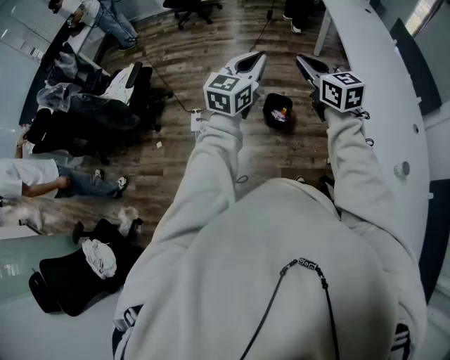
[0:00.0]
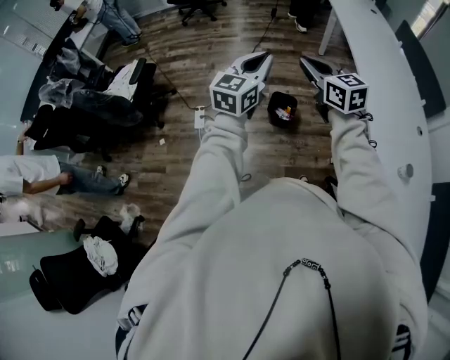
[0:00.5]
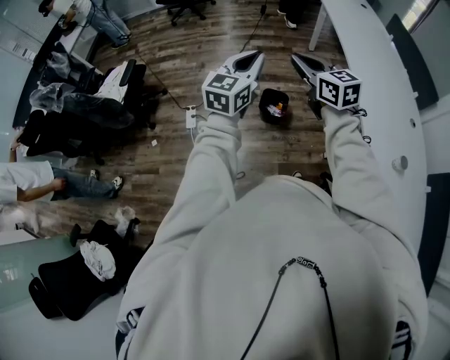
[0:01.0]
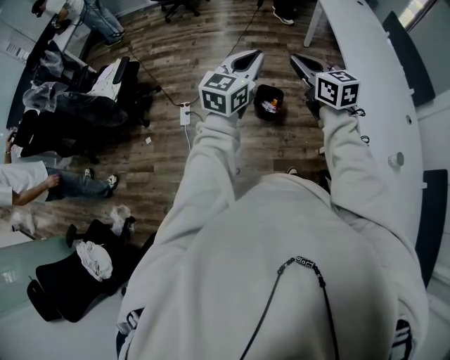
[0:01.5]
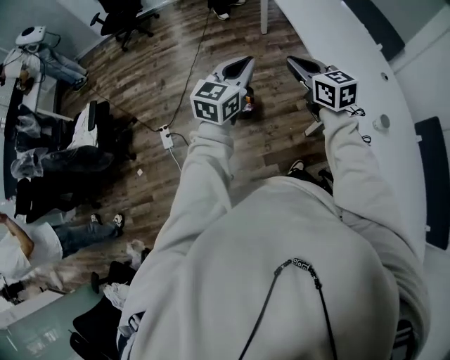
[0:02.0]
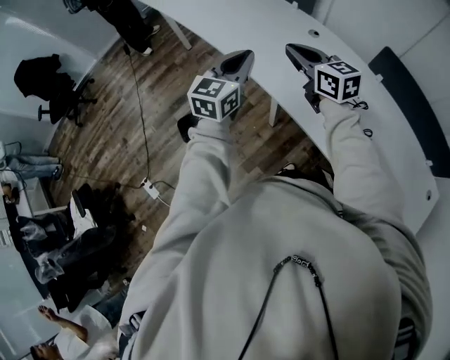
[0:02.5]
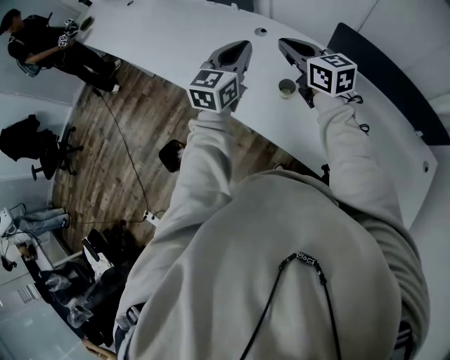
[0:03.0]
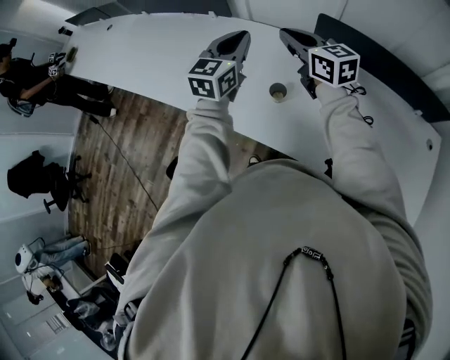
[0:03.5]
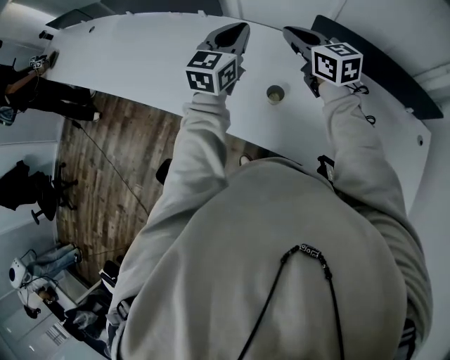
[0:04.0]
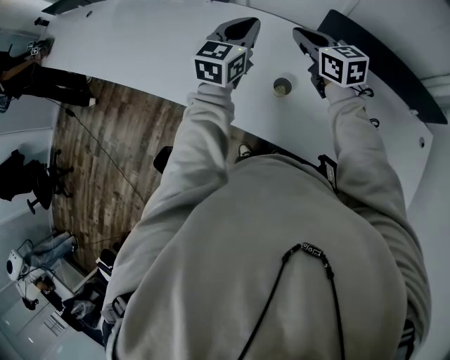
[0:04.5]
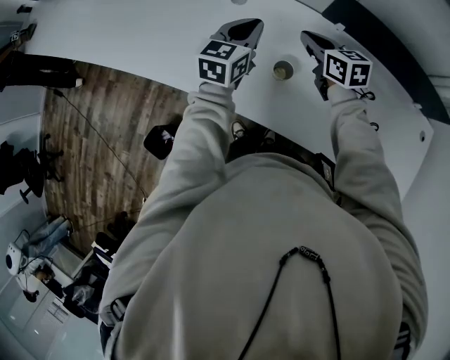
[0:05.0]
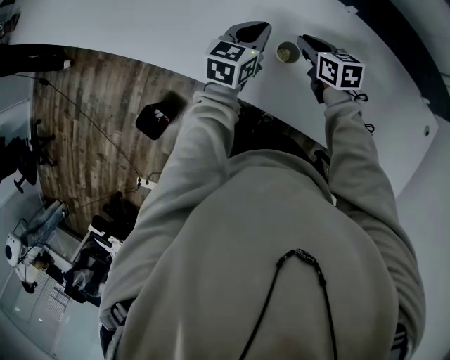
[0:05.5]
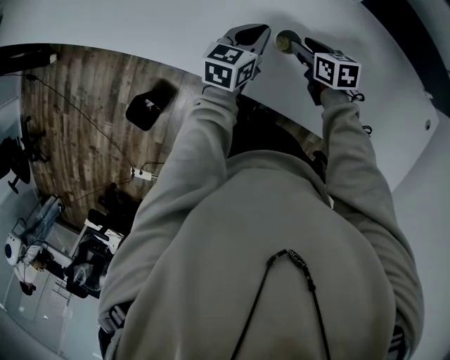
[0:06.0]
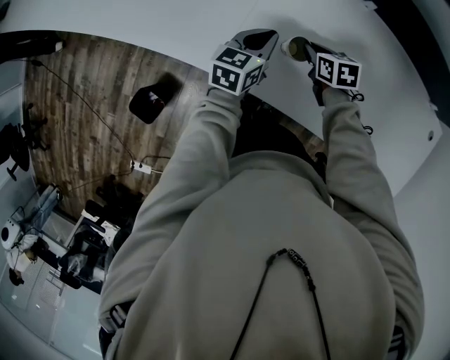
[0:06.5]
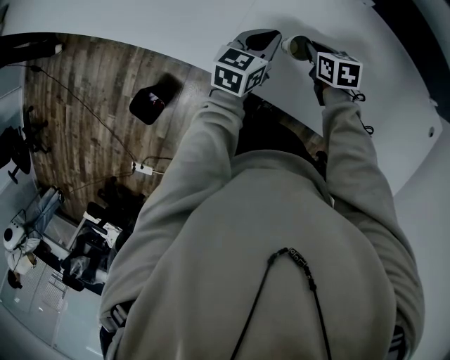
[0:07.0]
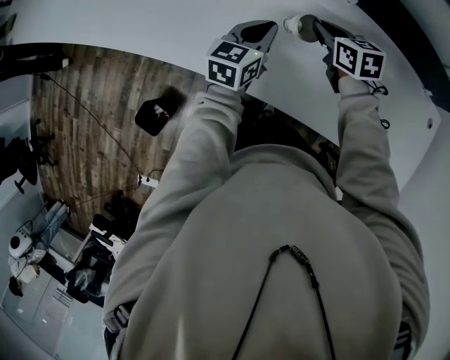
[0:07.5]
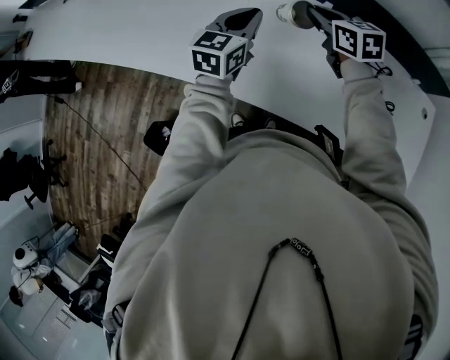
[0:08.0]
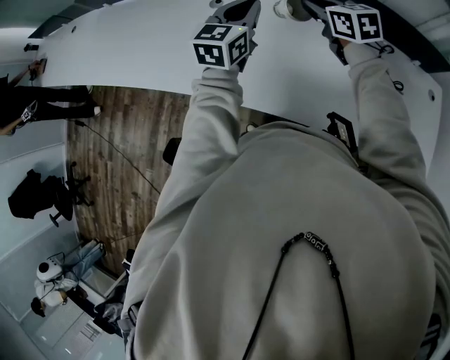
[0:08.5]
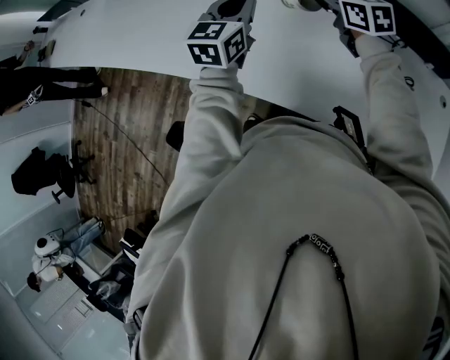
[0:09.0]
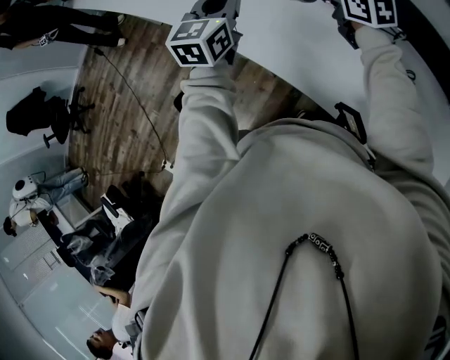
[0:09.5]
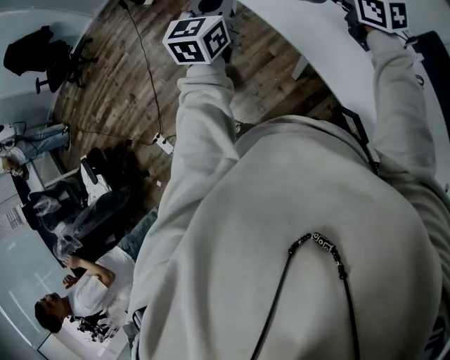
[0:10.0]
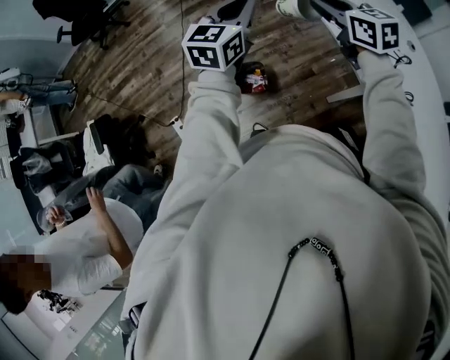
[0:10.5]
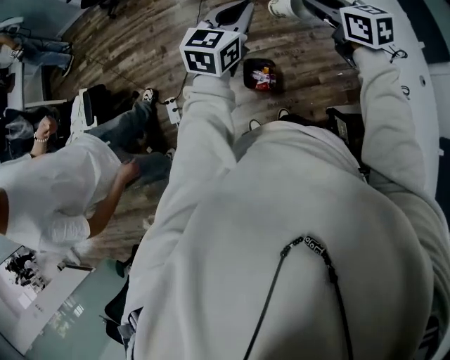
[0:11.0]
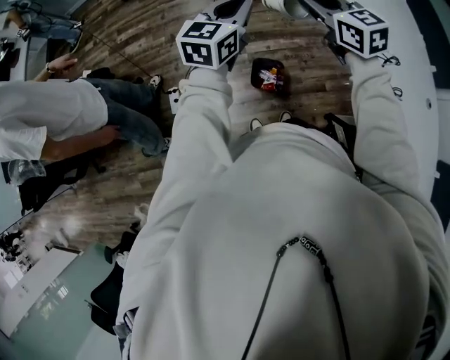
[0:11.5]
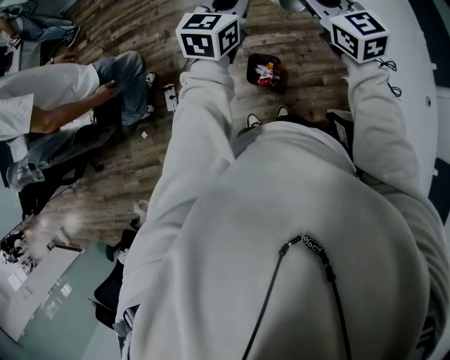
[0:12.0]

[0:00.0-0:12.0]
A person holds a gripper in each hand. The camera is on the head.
0:00.0 to 0:02.0: Both grippers travel together to the right, roughly 15 cm.
0:02.0 to 0:04.0: Both grippers are carried some 60 cm. The right gripper changes its angle by approximately 50 degrees, while the left gripper changes its angle by some 50 degrees.
0:04.0 to 0:06.0: Both grippers move downward, some 30 cm. The left gripper turns by about 30 degrees, while the right gripper tips its fingers downward by some 30 degrees, and opens.
0:06.0 to 0:08.0: Both grippers move upward, approximately 20 cm. The left gripper turns by approximately 20 degrees; the right gripper changes its angle by about 20 degrees, and closes its fingers.
0:08.0 to 0:10.0: The left gripper ends up roughly 40 cm from where it was, and swivels about 40 degrees, while the right gripper changes place by about 40 cm, and turns by approximately 40 degrees.
0:10.0 to 0:12.0: Both grippers are carried some 50 cm. The right gripper turns by some 30 degrees, while the left gripper swivels some 30 degrees.

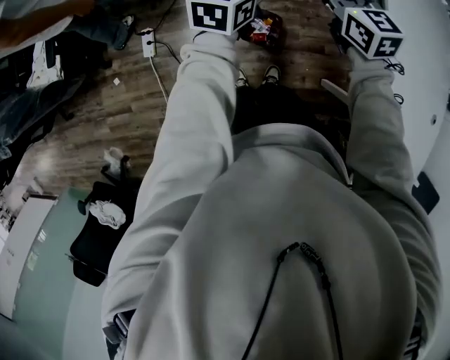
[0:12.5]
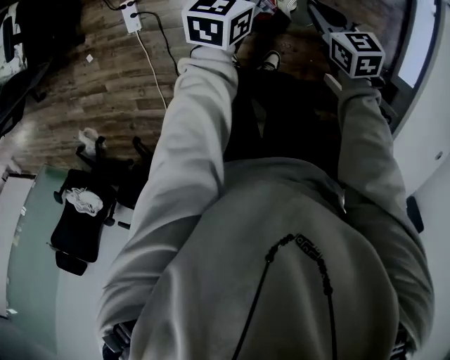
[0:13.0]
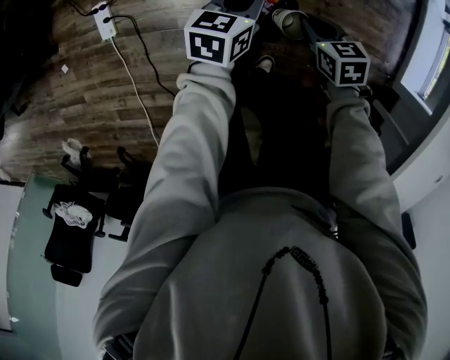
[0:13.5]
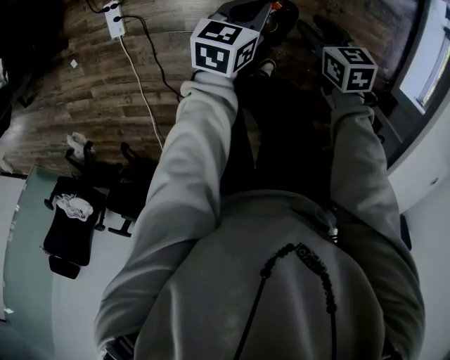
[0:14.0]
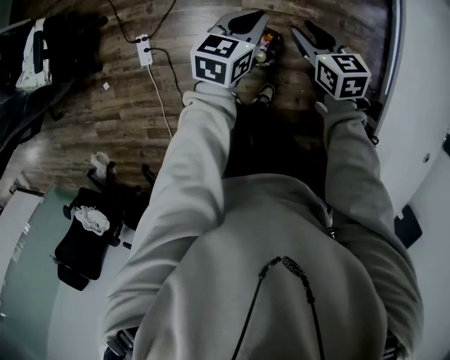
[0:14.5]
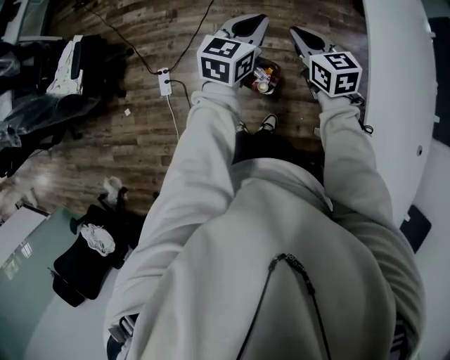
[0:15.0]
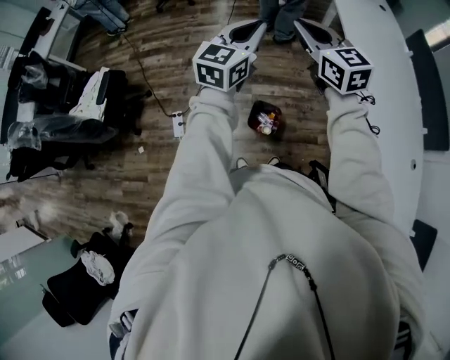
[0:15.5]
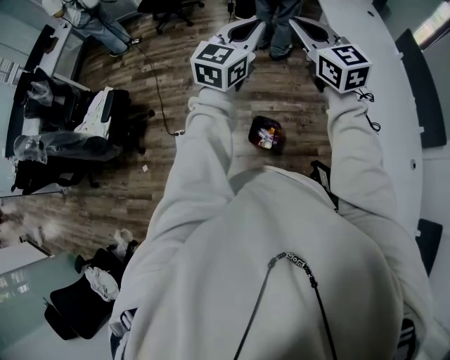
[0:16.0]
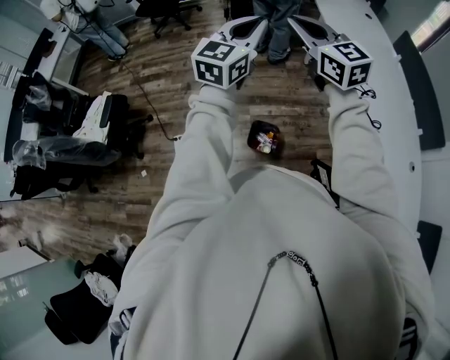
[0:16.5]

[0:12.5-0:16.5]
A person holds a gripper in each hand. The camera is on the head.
0:12.5 to 0:14.5: The left gripper travels downward and back again, approximately 40 cm each way, while the right gripper moves downward, about 15 cm, and opens.
0:14.5 to 0:16.5: Both grippers move upward, roughly 50 cm. The right gripper tilts its fingers about 40 degrees upward, and closes its fingers, while the left gripper rotates some 40 degrees.

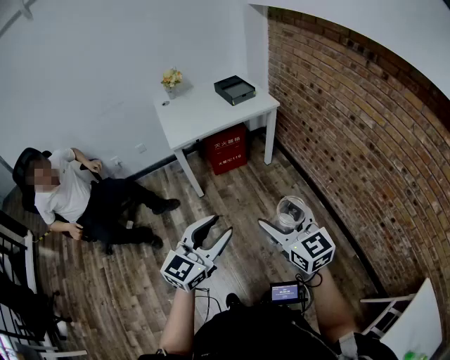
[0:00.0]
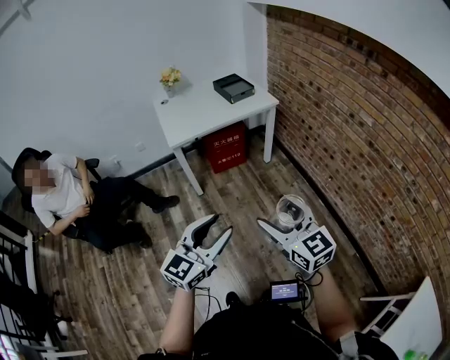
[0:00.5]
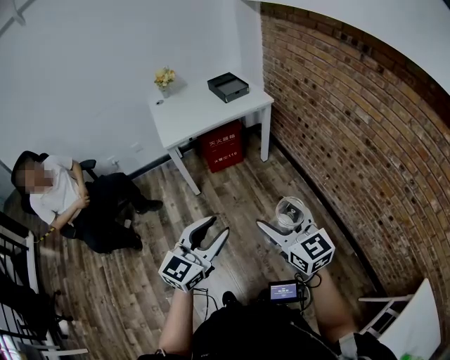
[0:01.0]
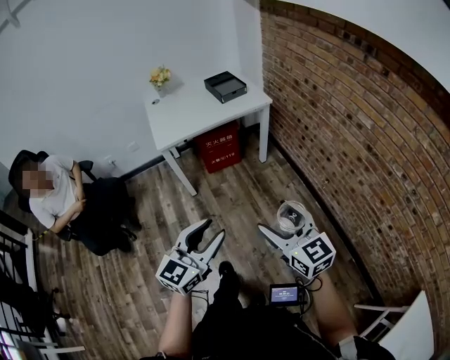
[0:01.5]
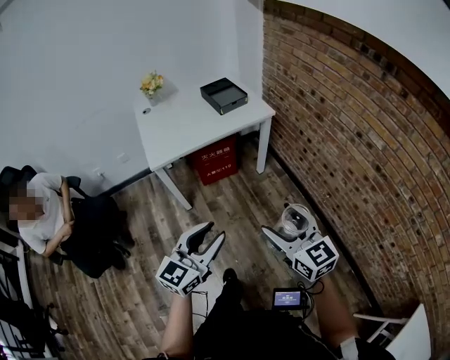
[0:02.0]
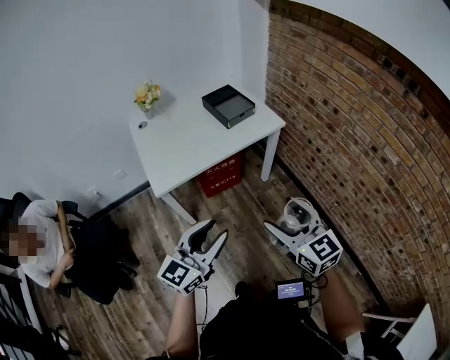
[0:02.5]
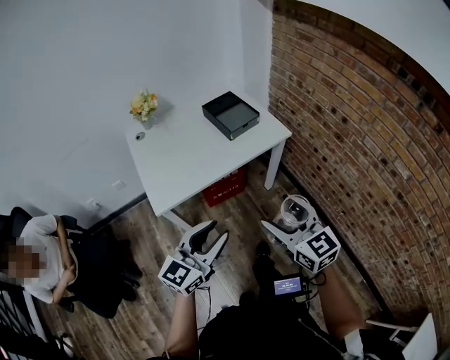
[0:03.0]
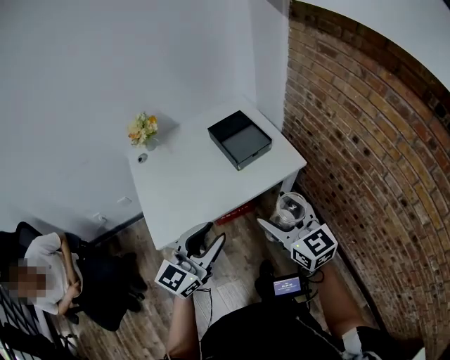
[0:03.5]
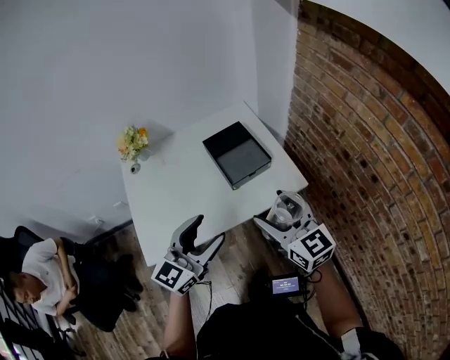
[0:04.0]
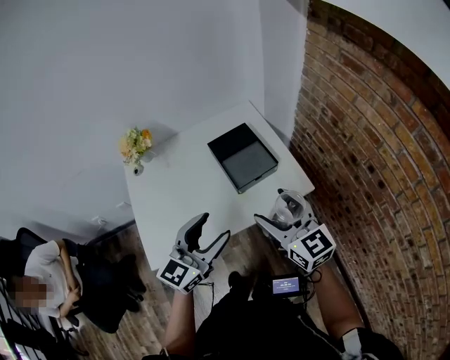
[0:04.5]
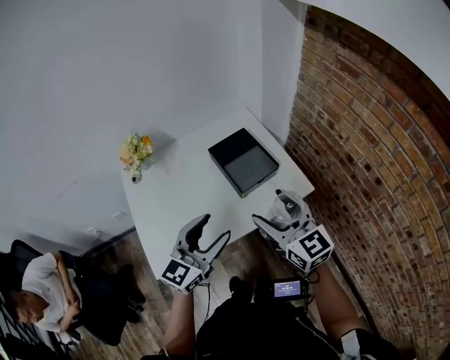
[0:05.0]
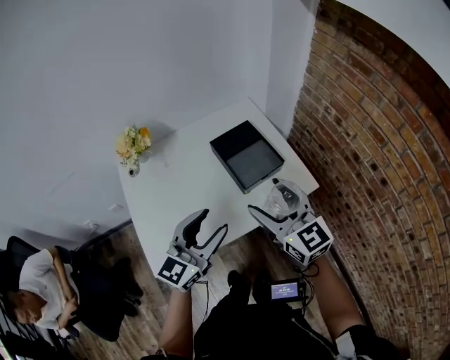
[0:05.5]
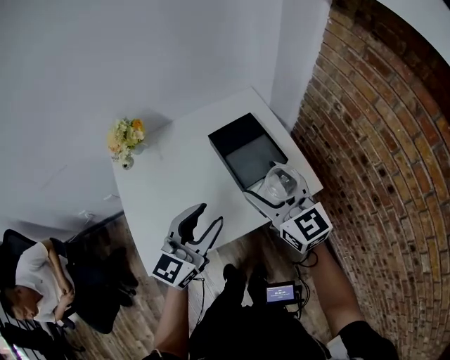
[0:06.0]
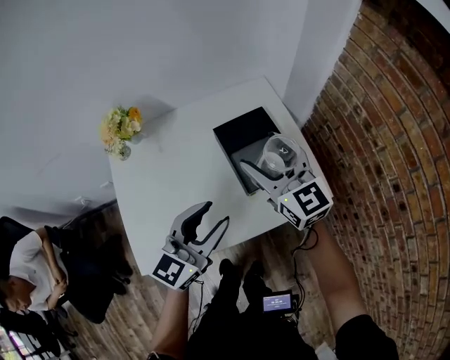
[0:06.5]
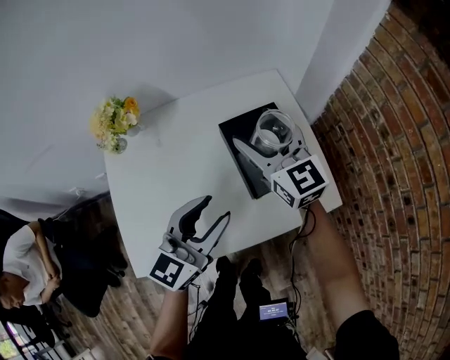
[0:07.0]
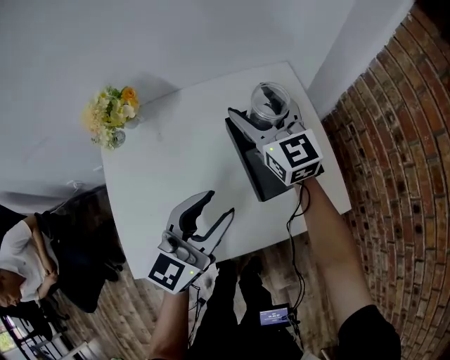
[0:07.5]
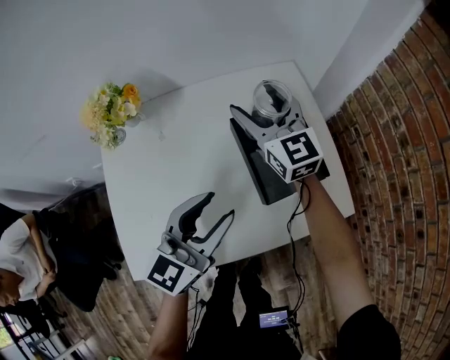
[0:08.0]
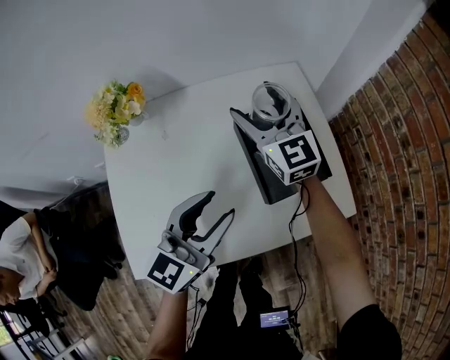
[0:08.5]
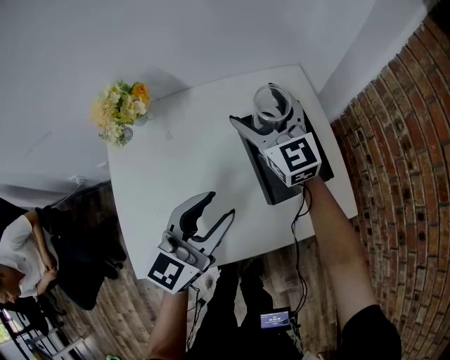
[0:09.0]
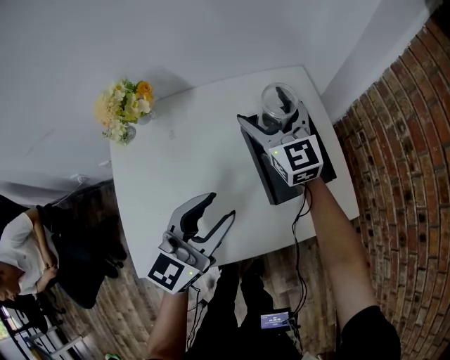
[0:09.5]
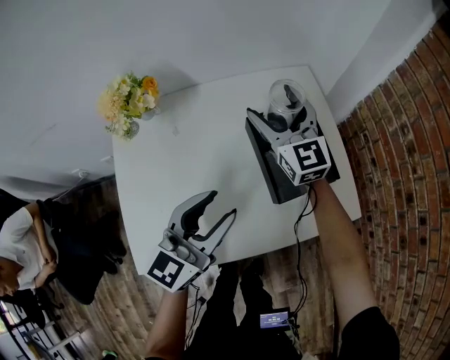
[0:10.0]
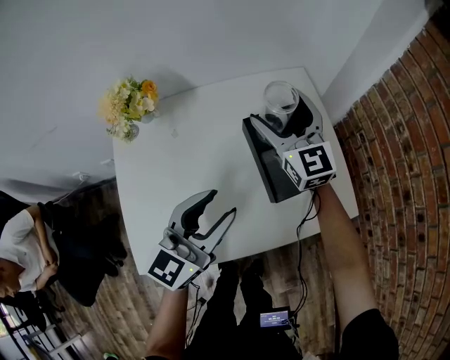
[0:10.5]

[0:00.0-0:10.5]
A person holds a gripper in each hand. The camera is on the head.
0:00.0 to 0:02.0: Both grippers move forward, approximately 20 cm.
0:02.0 to 0:04.0: Both grippers are carried forward, about 60 cm. The left gripper opens up.
0:04.0 to 0:06.5: The left gripper moves forward, roughly 15 cm, while the right gripper heads forward and to the left, covering some 25 cm.
0:06.5 to 0:08.5: The left gripper heads forward, covering some 5 cm; the right gripper shifts some 20 cm forward, to the left and downward.
0:08.5 to 0:10.5: The grippers stay close to where they were, moving slightly.
